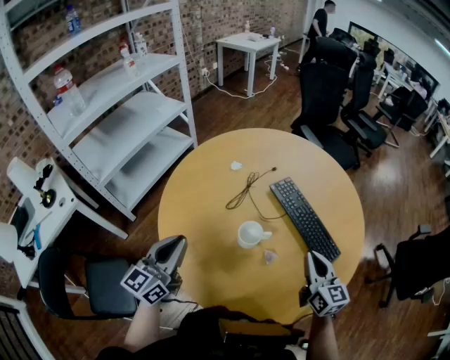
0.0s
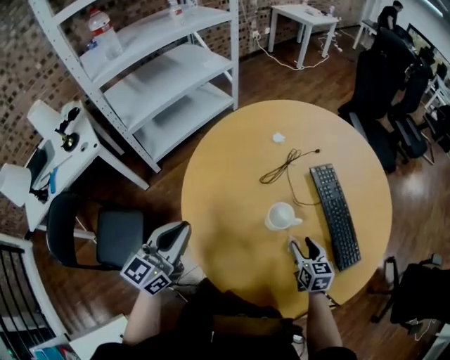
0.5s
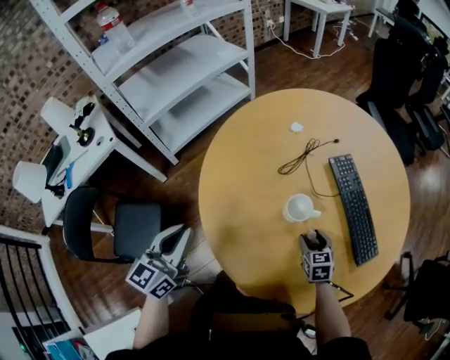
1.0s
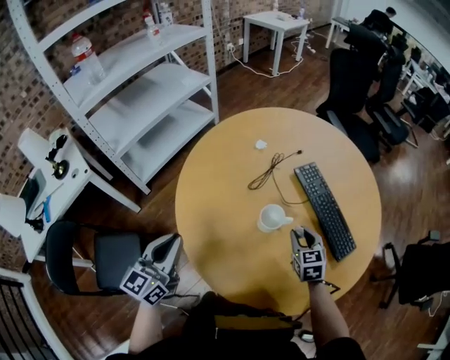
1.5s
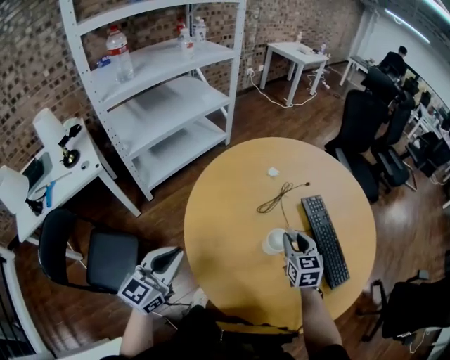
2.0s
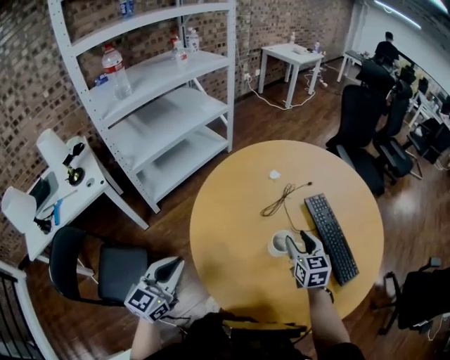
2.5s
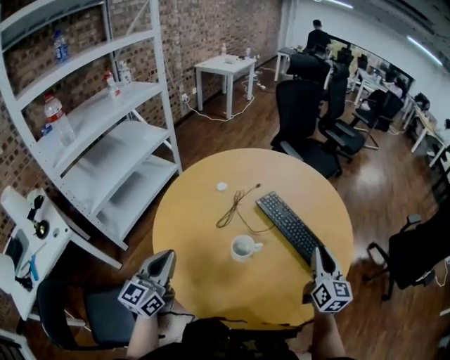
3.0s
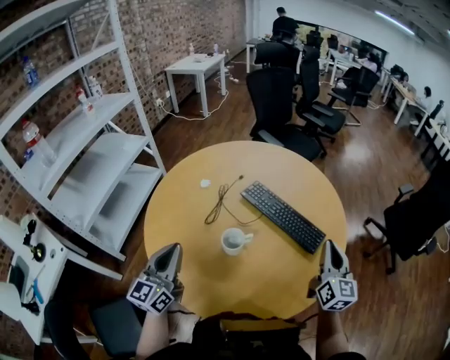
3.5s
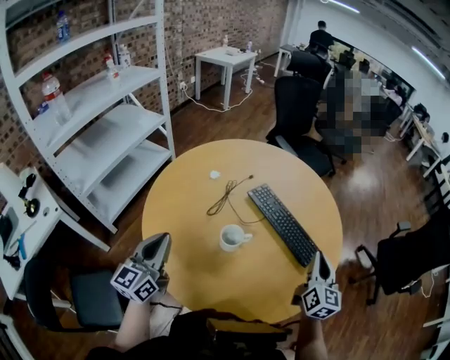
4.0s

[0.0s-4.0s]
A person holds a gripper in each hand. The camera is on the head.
0.0s to 2.0s: The left gripper moves to the left and backward, roughly 10 cm, while the right gripper is displaced to the left and forward by approximately 20 cm, goes downward and returns, approximately 20 cm each way, turns by some 30 degrees, and opens up.
2.0s to 4.0s: The right gripper changes place by about 30 cm, swivels approximately 50 degrees, and closes; the left gripper ends up about 10 cm from where it was.

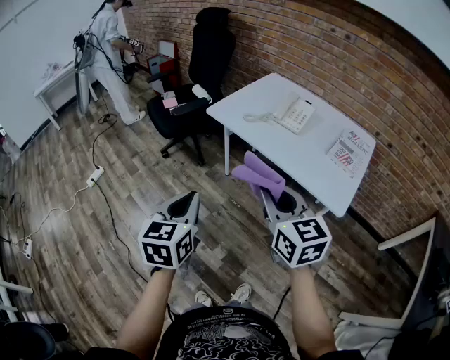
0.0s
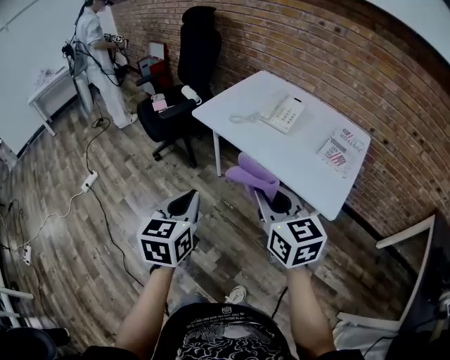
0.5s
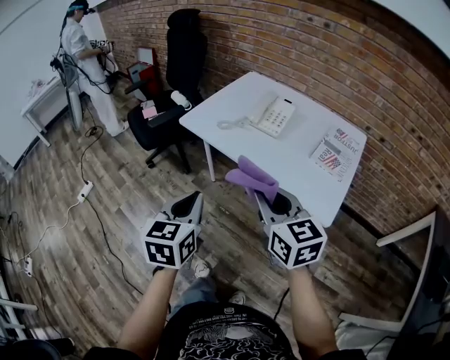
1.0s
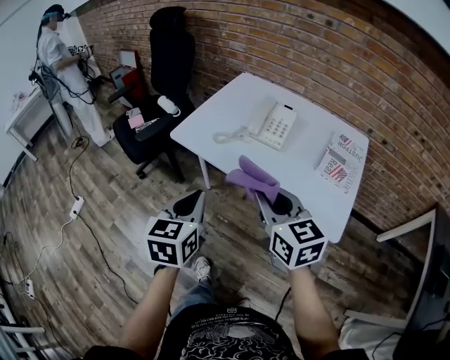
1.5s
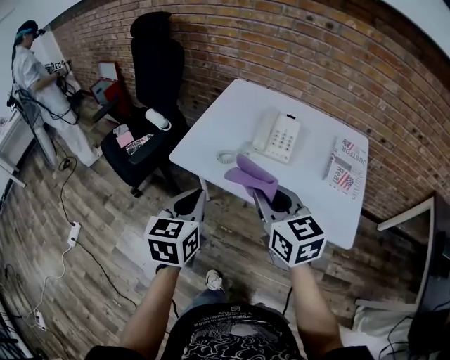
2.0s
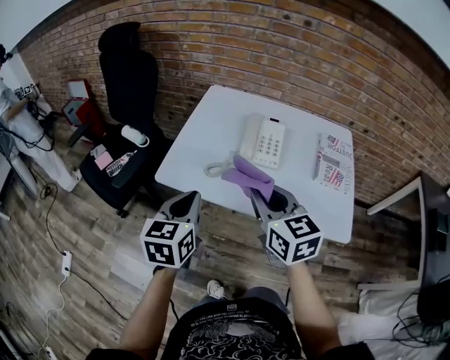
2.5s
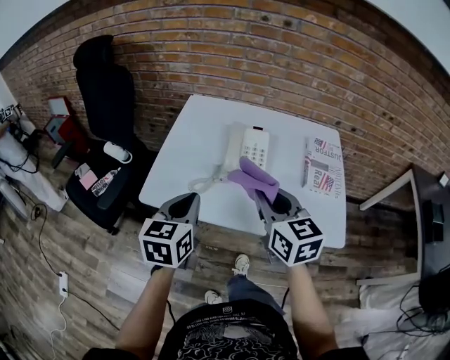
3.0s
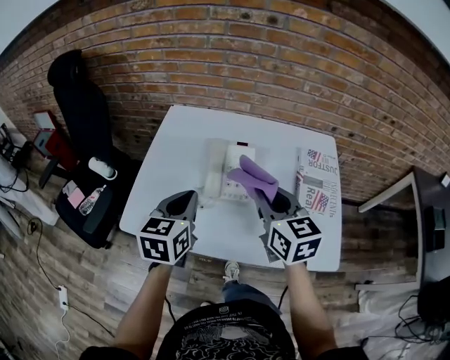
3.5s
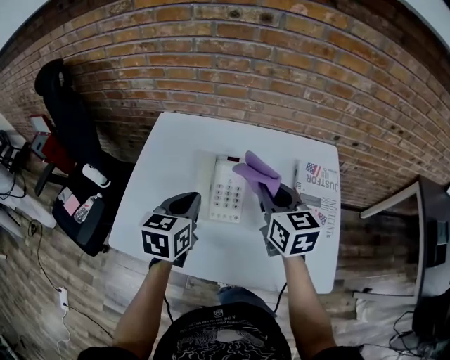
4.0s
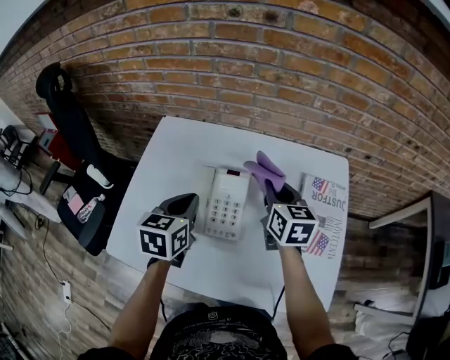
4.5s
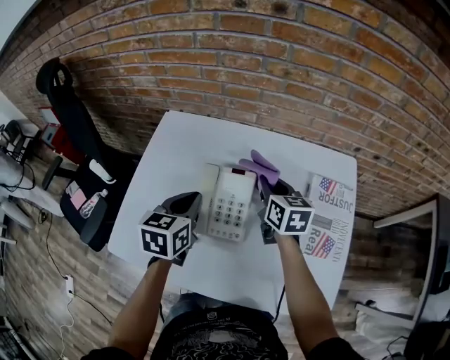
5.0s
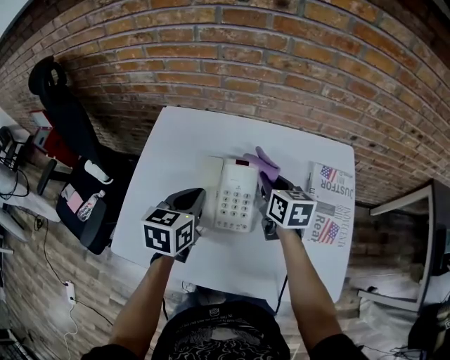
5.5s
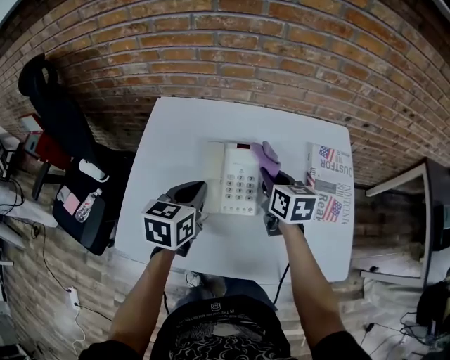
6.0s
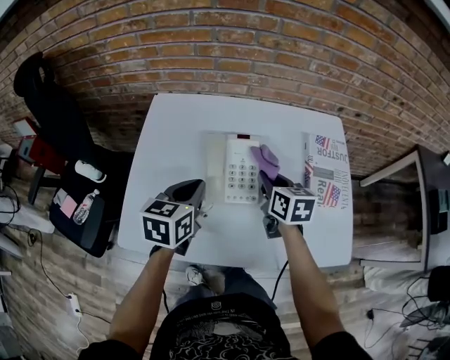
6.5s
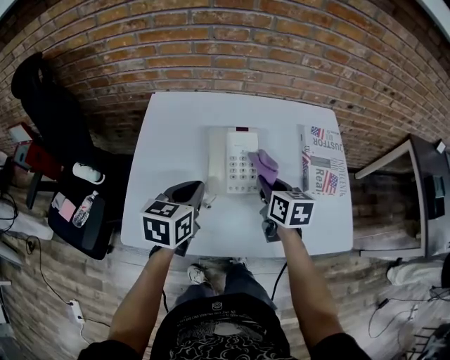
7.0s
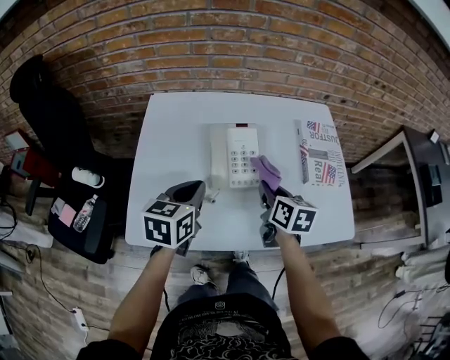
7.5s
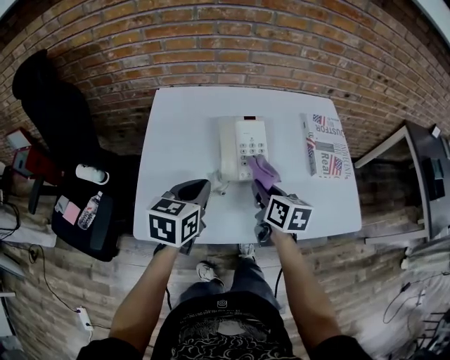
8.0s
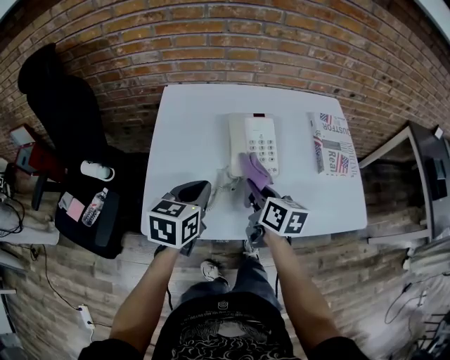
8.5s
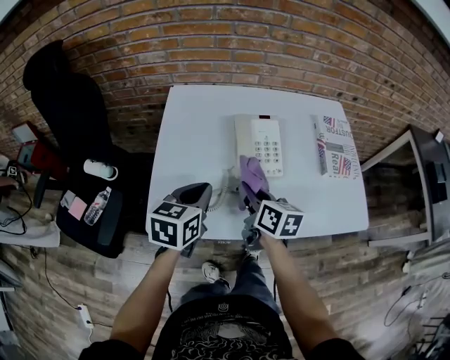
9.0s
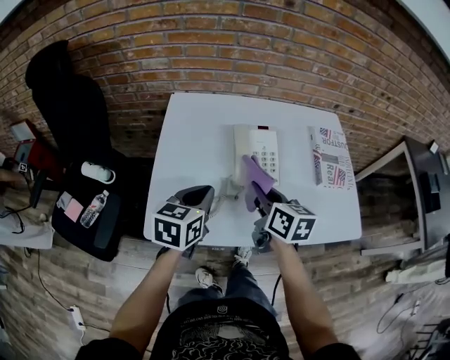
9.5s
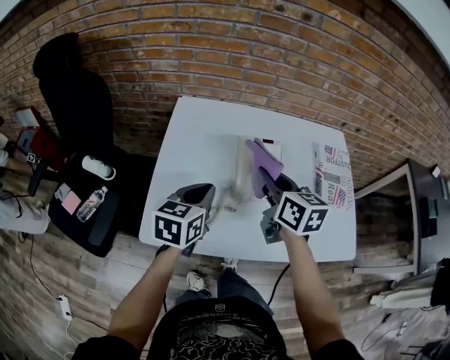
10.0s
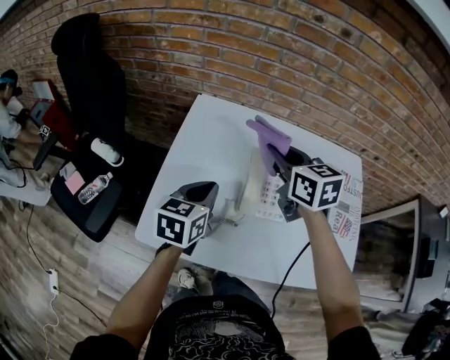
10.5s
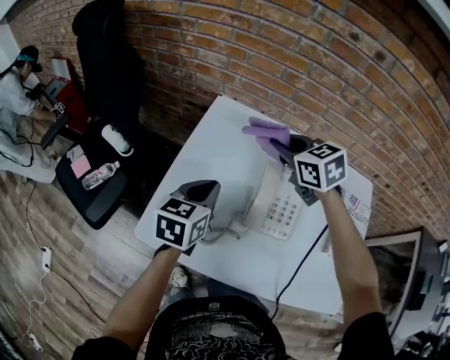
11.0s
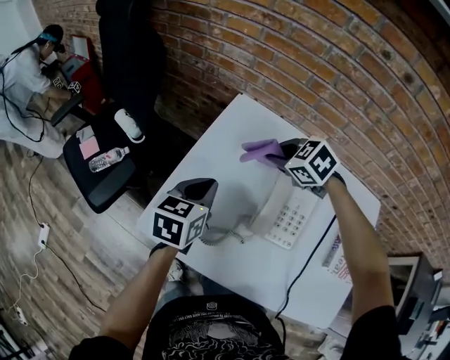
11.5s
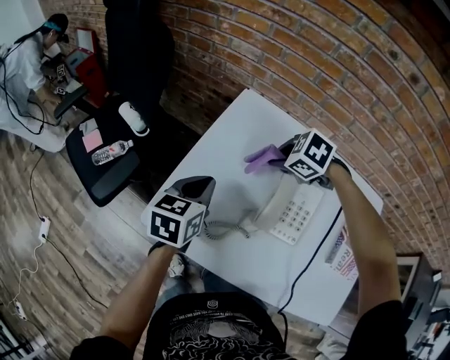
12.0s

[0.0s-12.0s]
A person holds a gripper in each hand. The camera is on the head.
0.0s to 2.0s: Both grippers travel together forward, approximately 30 cm.
2.0s to 4.0s: The two grippers go about 35 cm forward and to the right. The right gripper changes its angle by about 20 degrees, while the left gripper swivels some 20 degrees.
4.0s to 6.0s: The left gripper shifts by some 5 cm; the right gripper goes roughly 10 cm downward and forward.
6.0s to 8.0s: The right gripper goes some 15 cm backward. The left gripper goes some 10 cm backward.
8.0s to 10.0s: The right gripper moves upward and to the left, approximately 15 cm.
10.0s to 12.0s: The right gripper moves approximately 20 cm, and tips its fingers downward by roughly 50 degrees. The left gripper changes place by approximately 10 cm, and rotates some 20 degrees.

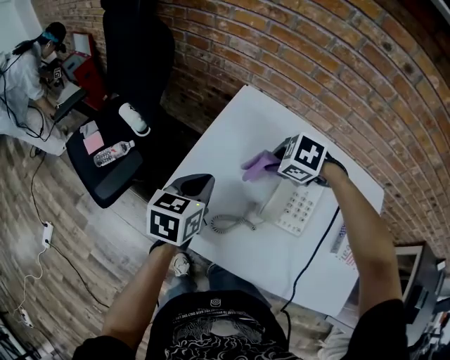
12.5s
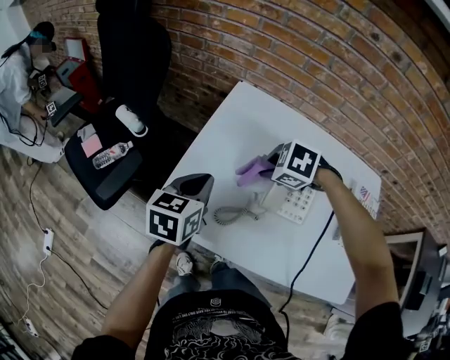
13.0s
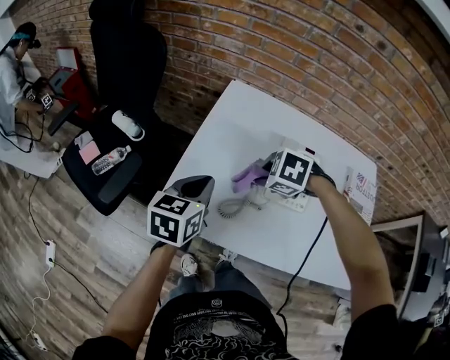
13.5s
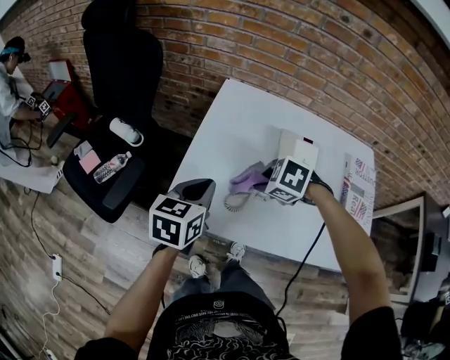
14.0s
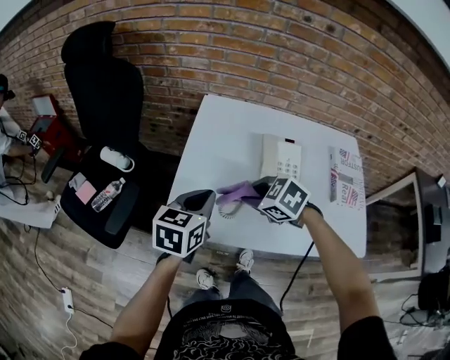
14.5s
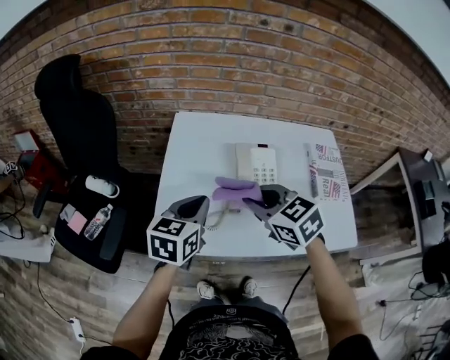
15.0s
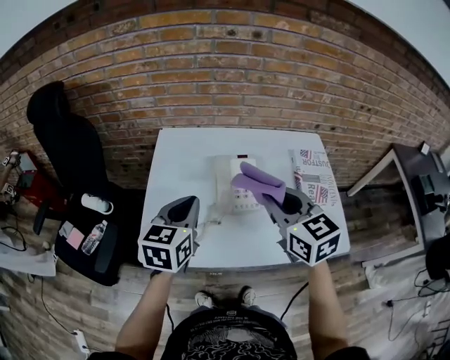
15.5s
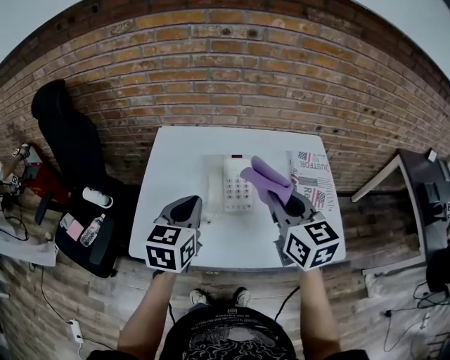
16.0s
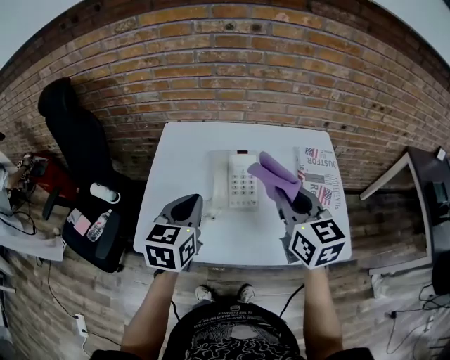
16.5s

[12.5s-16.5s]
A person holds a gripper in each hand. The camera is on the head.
12.5s to 14.5s: The right gripper moves about 15 cm, and turns by about 30 degrees; the left gripper changes place by approximately 10 cm.
14.5s to 16.5s: The left gripper heads to the right and upward, covering about 15 cm. Meanwhile the right gripper is displaced to the right and upward by about 30 cm, and angles its fingers upward, by about 40 degrees.

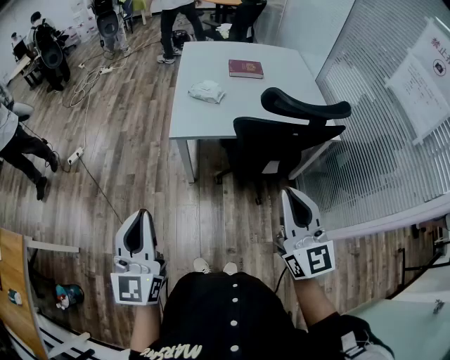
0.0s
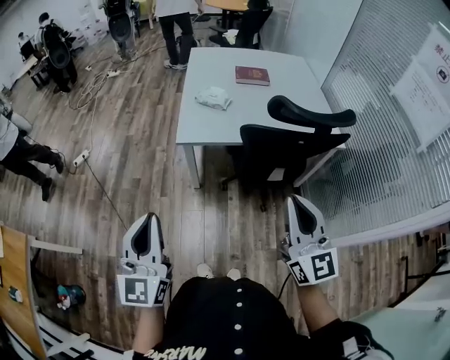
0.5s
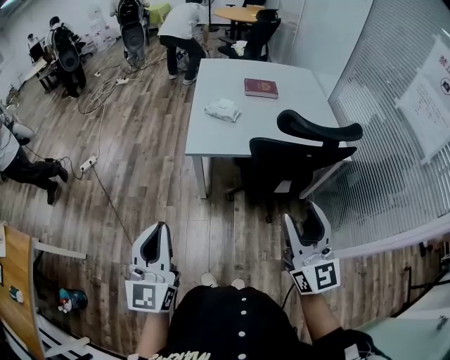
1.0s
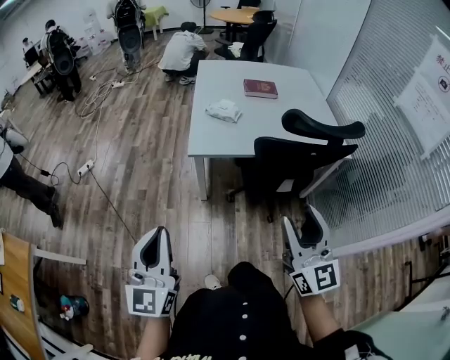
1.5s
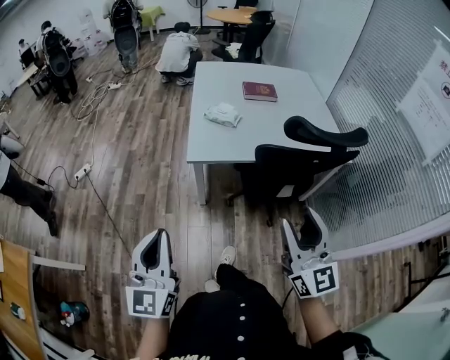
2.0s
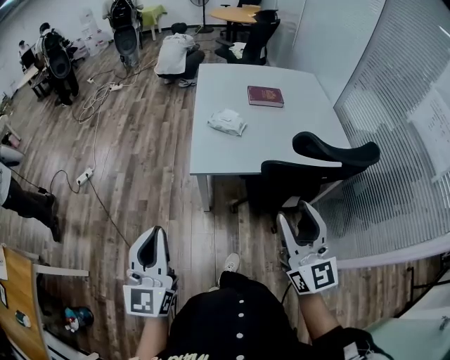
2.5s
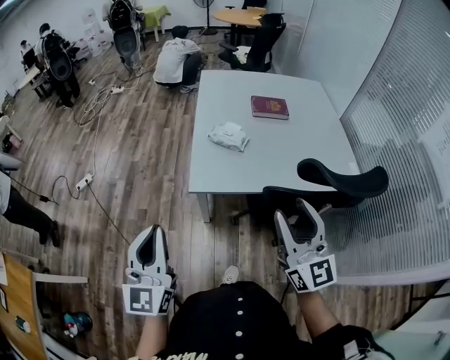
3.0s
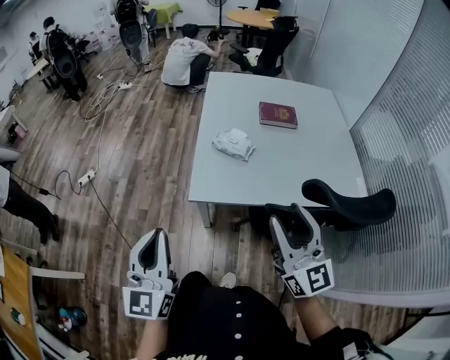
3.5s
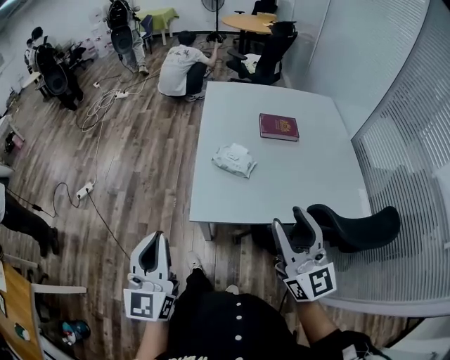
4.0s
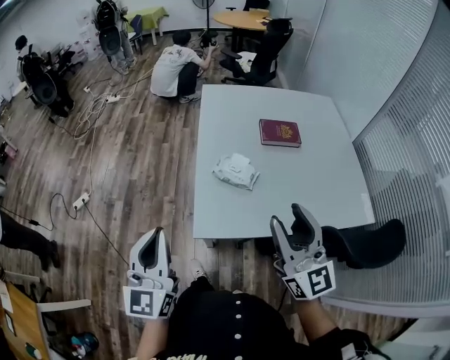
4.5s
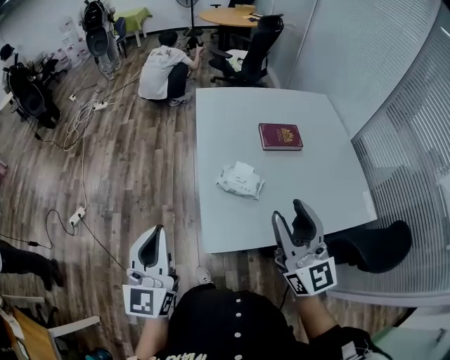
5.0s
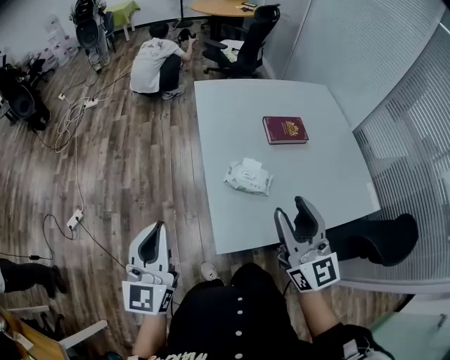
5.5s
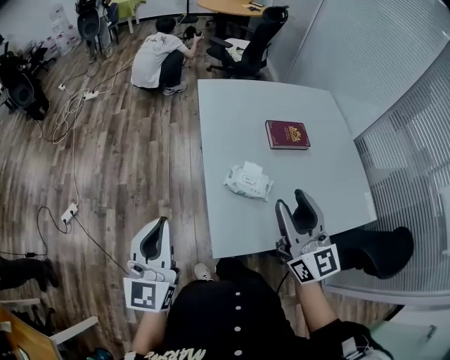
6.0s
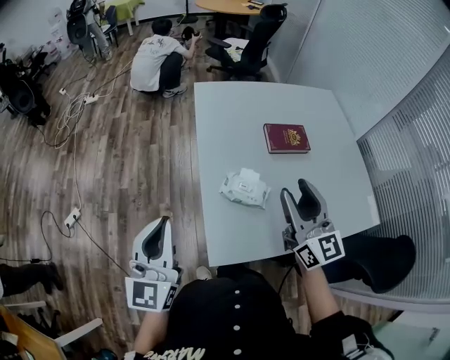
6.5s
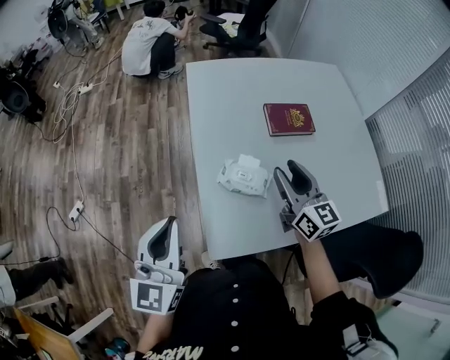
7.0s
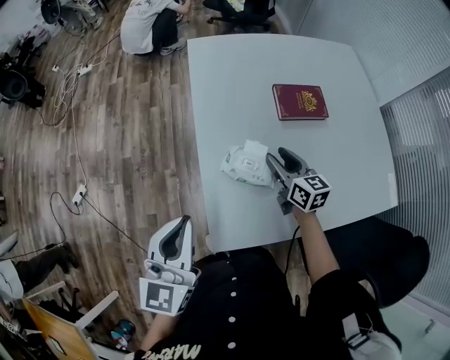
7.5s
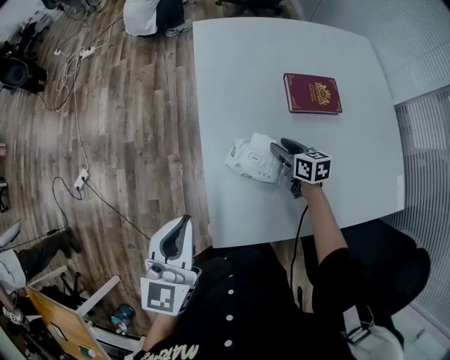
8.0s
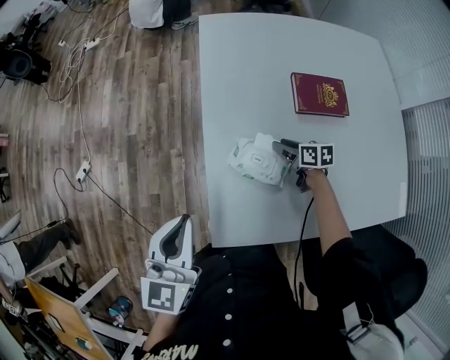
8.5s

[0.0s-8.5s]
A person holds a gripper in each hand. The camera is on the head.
0.0s to 2.0s: The left gripper moves about 5 cm. The right gripper moves roughly 5 cm, and opens.
2.0s to 4.0s: The grippers both shift forward by roughly 30 cm.
4.0s to 6.5s: The two grippers go some 25 cm forward.
6.5s to 8.5s: The right gripper travels downward and forward by approximately 40 cm, and tips its fingers downward by roughly 40 degrees. Meanwhile the left gripper travels downward and to the right by some 10 cm, and swivels roughly 20 degrees.
